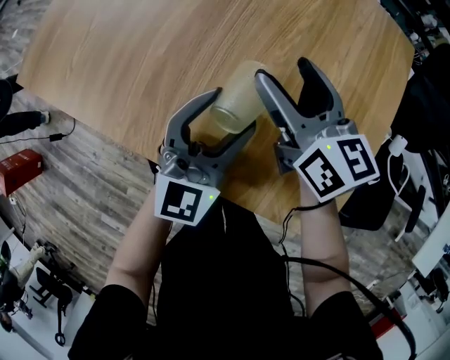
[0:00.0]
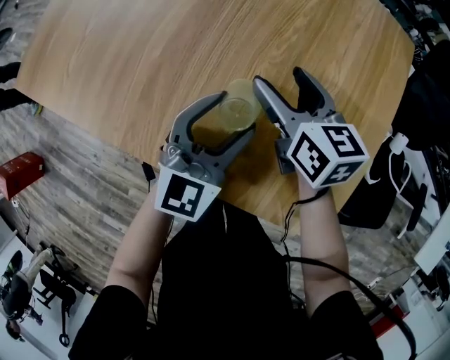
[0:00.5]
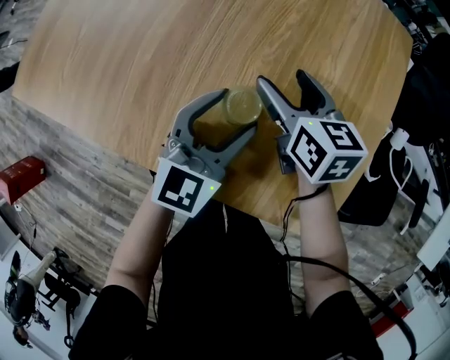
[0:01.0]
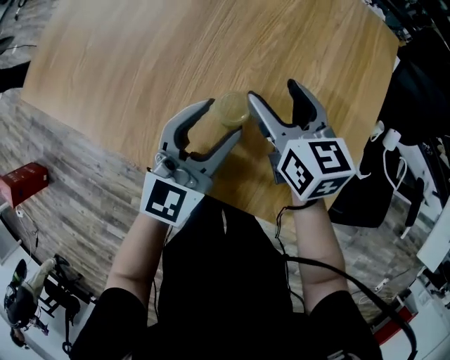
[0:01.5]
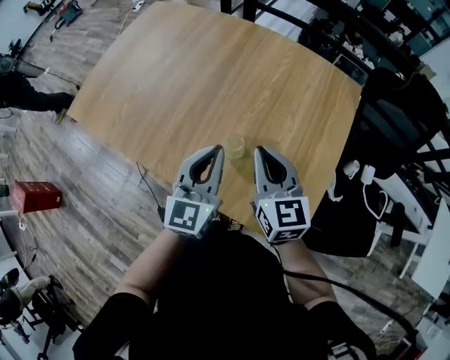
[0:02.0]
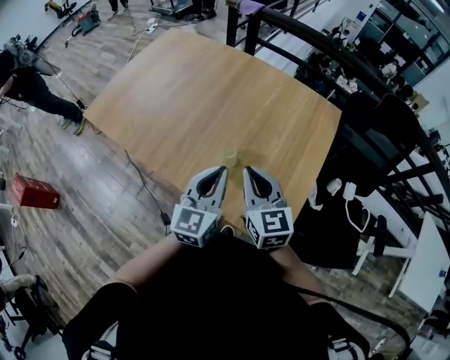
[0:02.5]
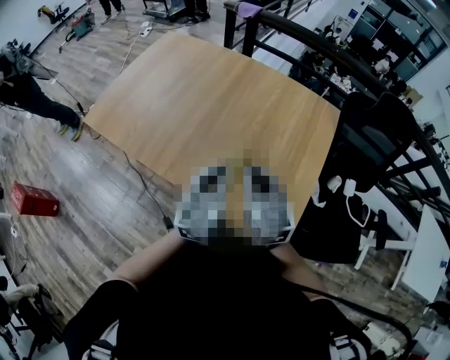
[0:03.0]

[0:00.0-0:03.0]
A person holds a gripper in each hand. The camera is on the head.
0:00.0 to 0:01.5: The right gripper goes downward and returns, roughly 10 cm each way.
0:01.5 to 0:03.0: The grippers both shift upward and backward by roughly 25 cm. The left gripper closes; the right gripper closes up.

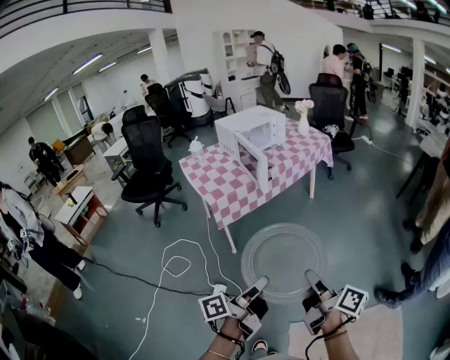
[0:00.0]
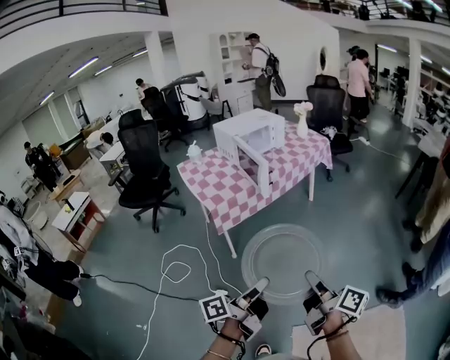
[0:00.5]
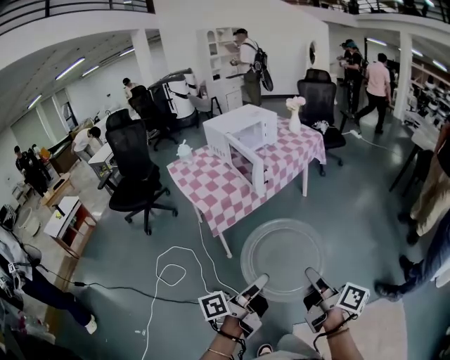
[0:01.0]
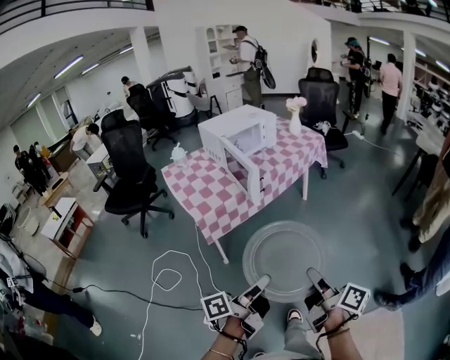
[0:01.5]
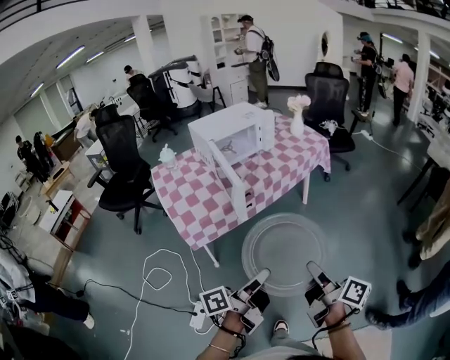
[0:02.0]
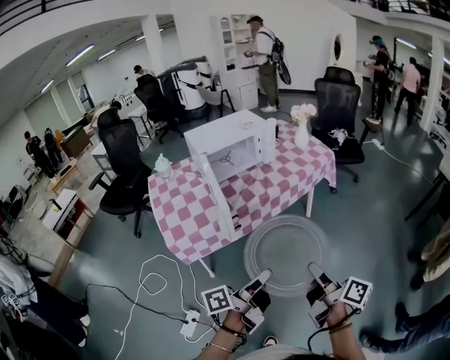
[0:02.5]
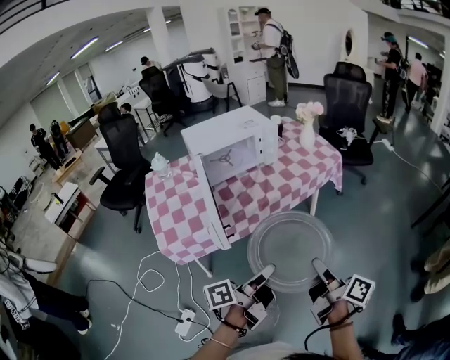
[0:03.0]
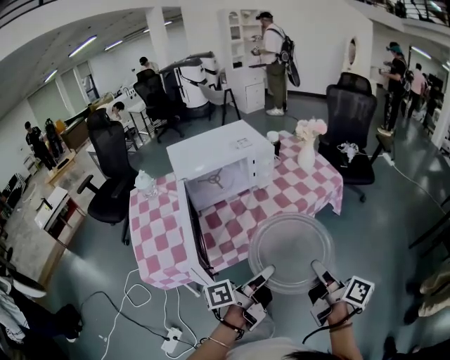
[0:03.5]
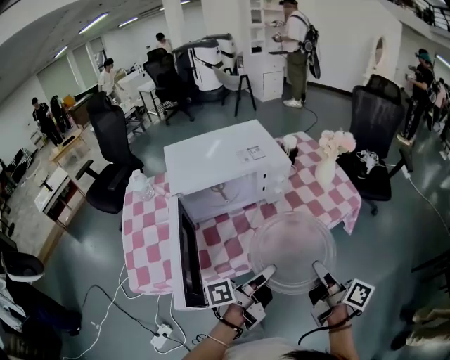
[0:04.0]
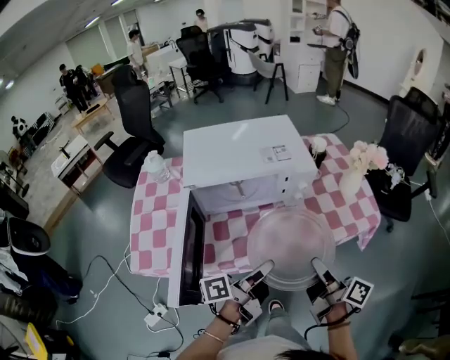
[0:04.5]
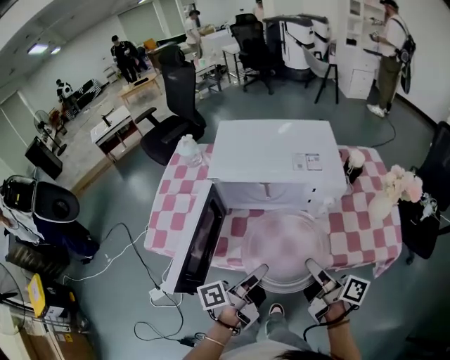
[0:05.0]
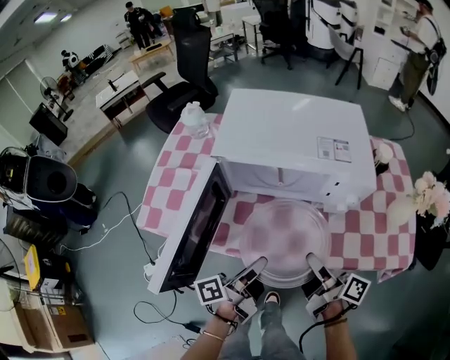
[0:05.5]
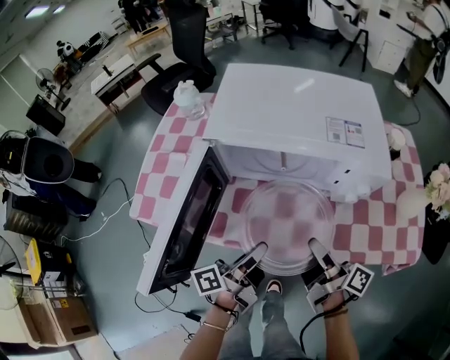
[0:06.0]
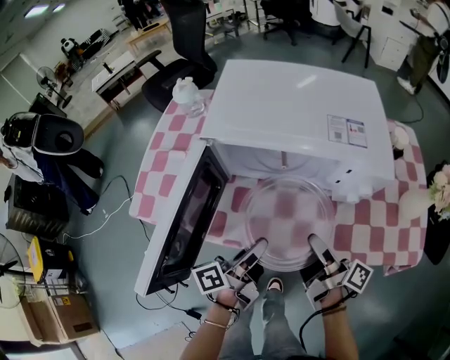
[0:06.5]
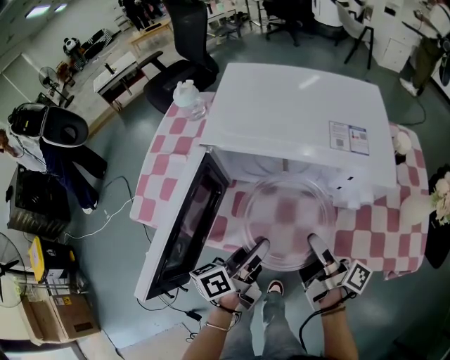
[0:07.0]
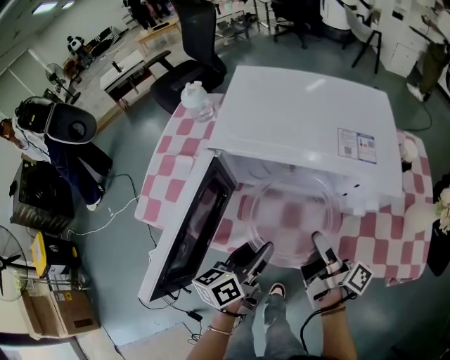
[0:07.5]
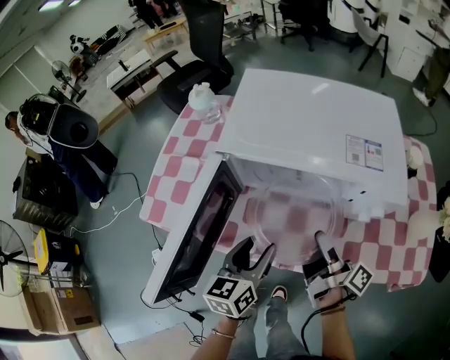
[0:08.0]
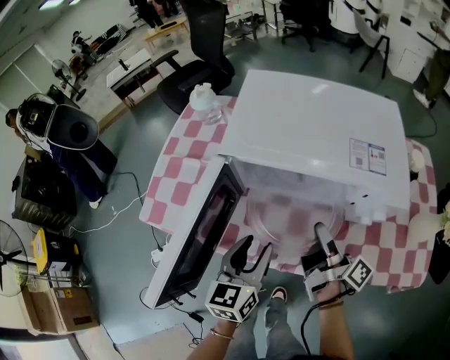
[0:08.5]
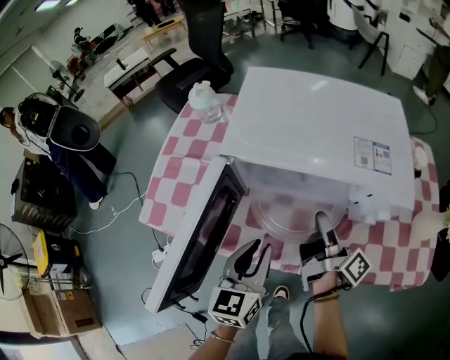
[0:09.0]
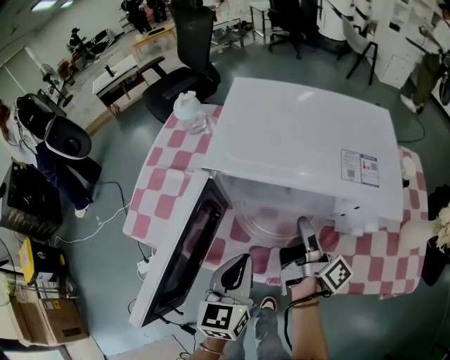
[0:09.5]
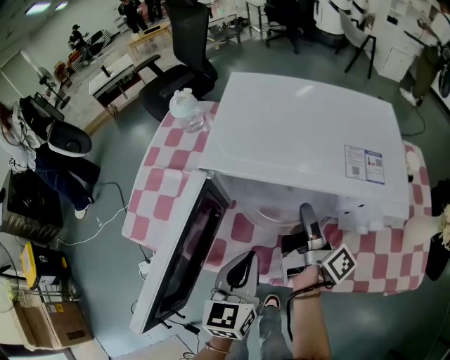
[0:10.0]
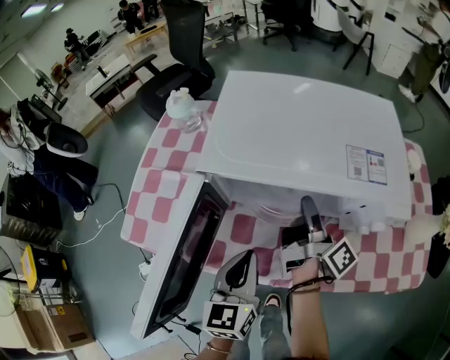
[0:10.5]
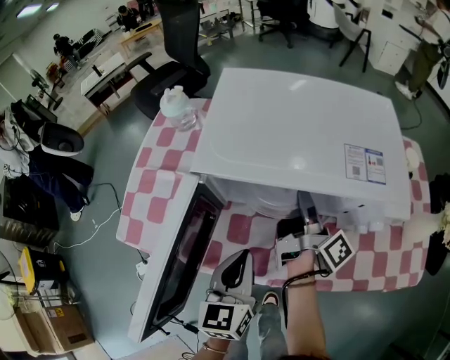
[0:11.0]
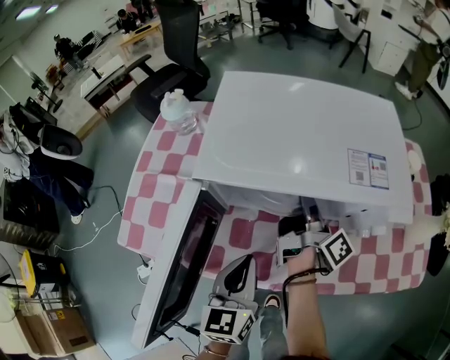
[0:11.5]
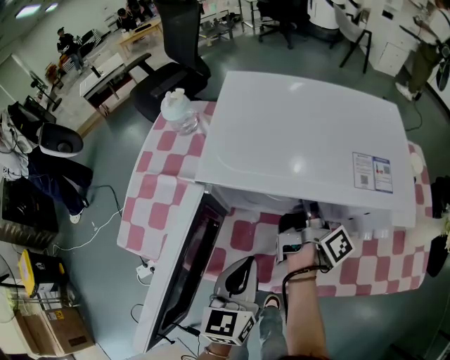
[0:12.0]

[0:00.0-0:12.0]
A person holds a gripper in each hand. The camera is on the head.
0:00.0 to 0:02.0: The left gripper ends up about 30 cm from where it was.
0:02.0 to 0:04.0: The left gripper ends up about 50 cm from where it was.
0:04.0 to 0:06.0: The left gripper ends up roughly 20 cm from where it was, and turns by approximately 40 degrees.
0:06.0 to 0:08.0: The left gripper changes place by about 5 cm, twists some 50 degrees clockwise, seen from behind, and opens up.
0:08.0 to 0:10.0: The left gripper closes.

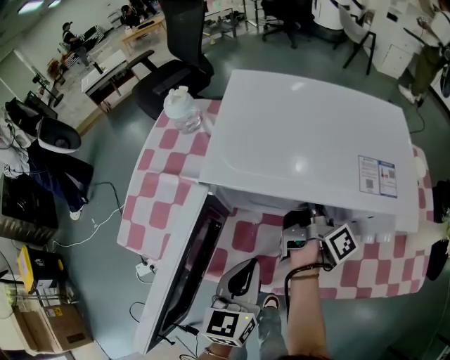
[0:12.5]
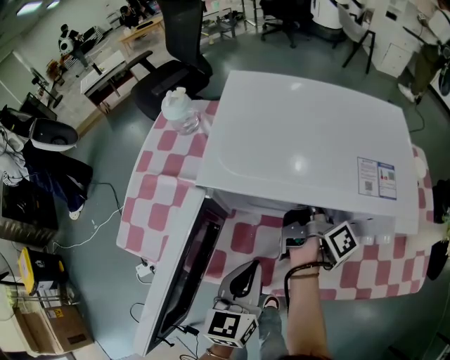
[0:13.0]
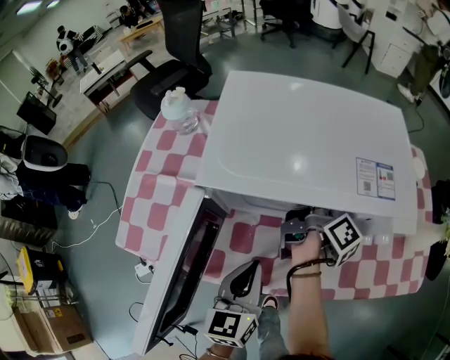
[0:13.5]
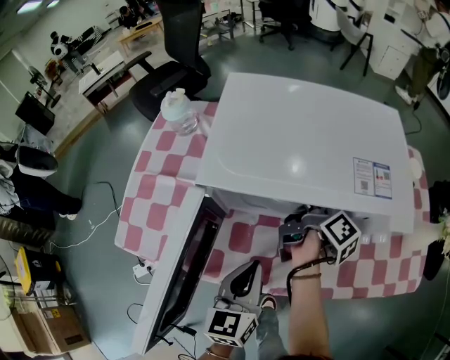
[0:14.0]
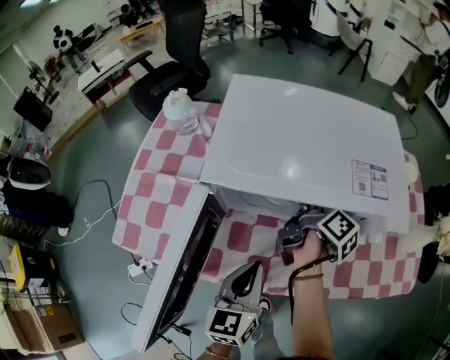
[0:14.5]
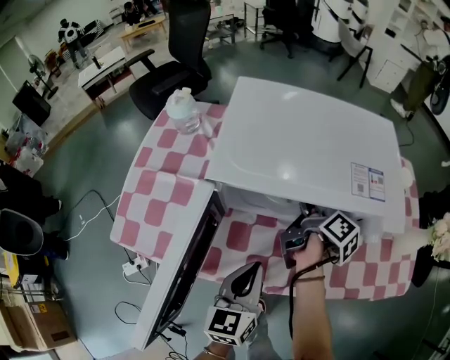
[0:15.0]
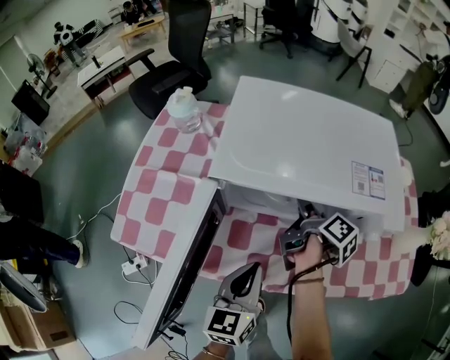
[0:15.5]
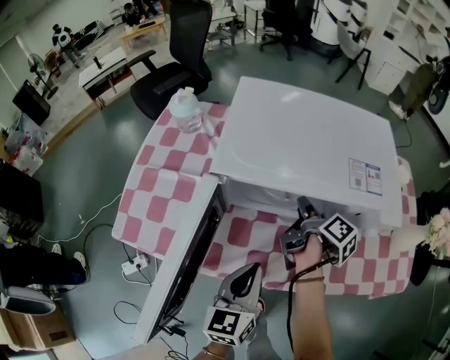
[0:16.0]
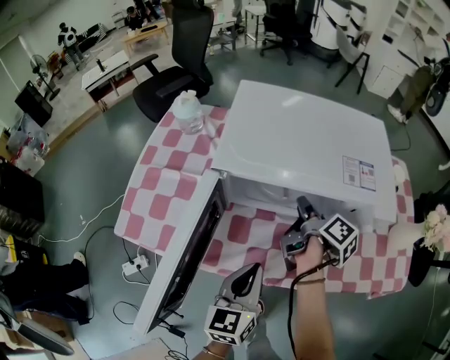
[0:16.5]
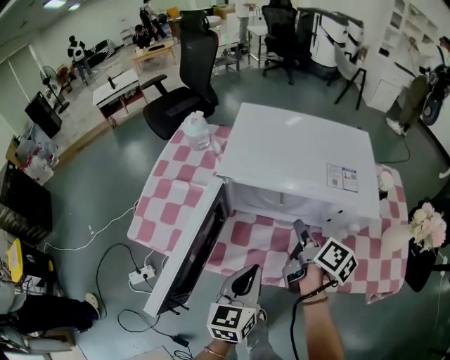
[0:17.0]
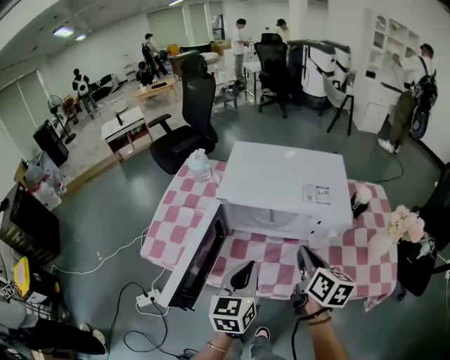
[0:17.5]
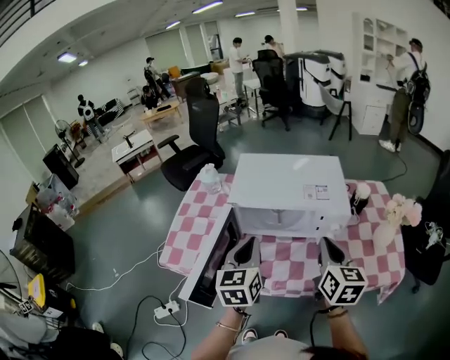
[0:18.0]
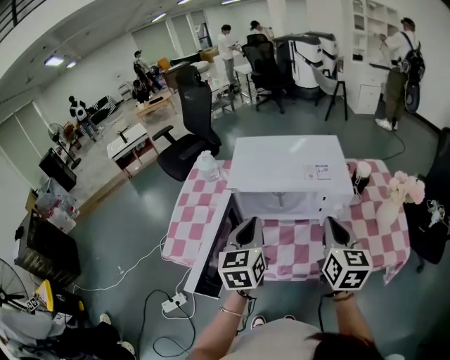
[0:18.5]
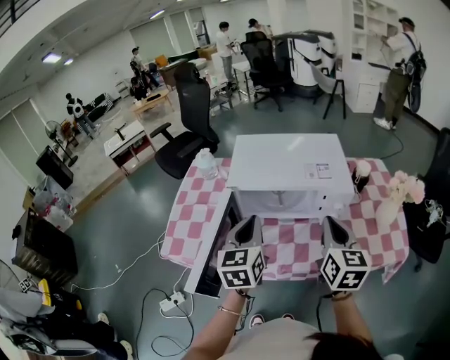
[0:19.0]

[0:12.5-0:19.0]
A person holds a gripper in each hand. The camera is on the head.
0:14.5 to 0:17.0: The left gripper ends up roughly 5 cm from where it was.
0:17.0 to 0:19.0: The left gripper heads upward, covering roughly 15 cm.

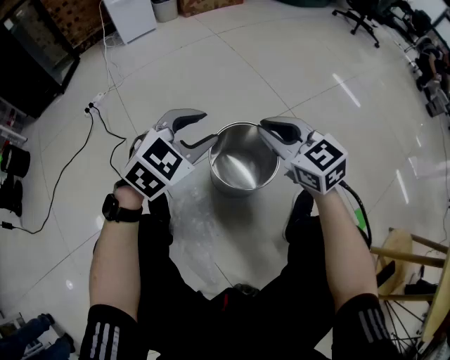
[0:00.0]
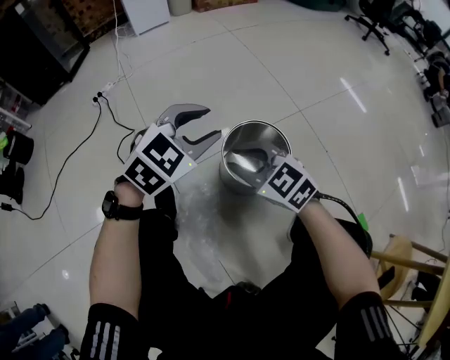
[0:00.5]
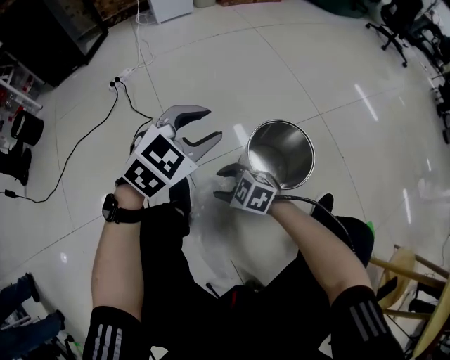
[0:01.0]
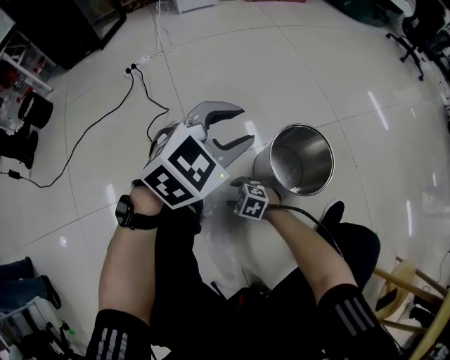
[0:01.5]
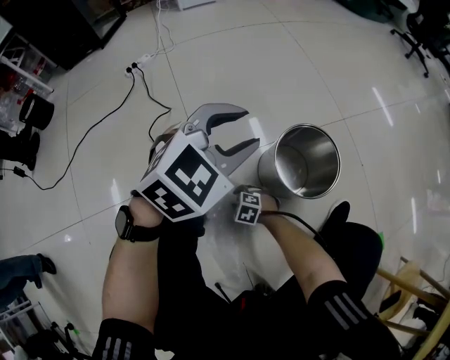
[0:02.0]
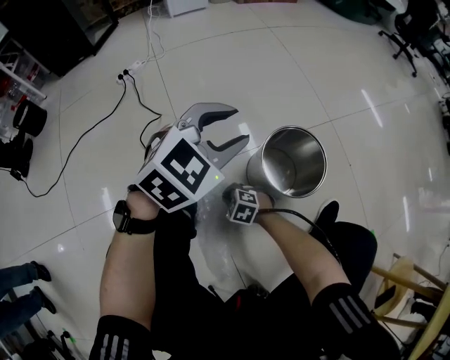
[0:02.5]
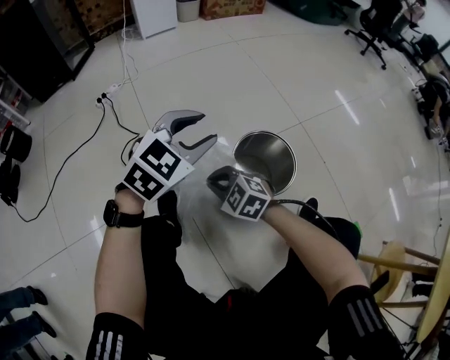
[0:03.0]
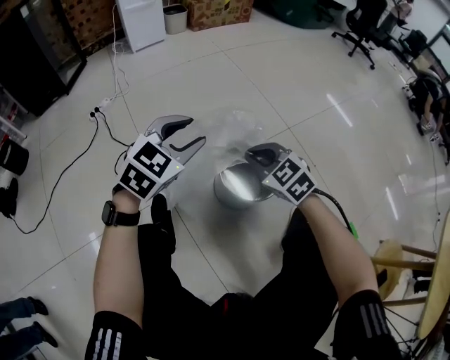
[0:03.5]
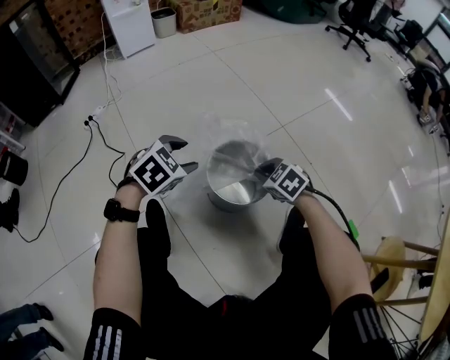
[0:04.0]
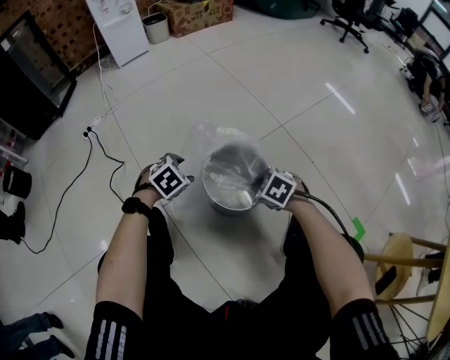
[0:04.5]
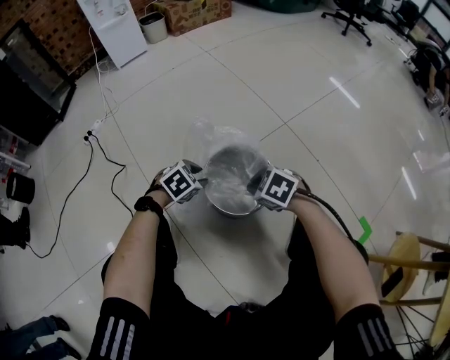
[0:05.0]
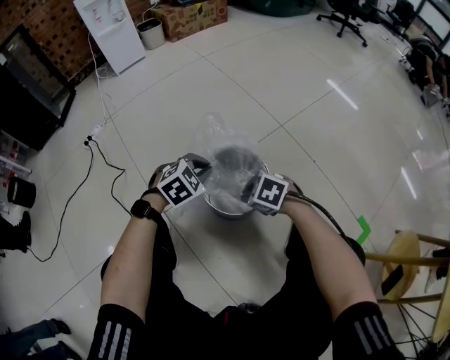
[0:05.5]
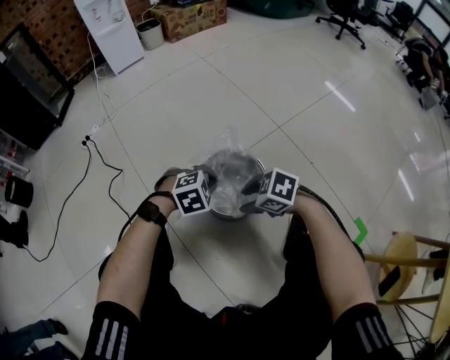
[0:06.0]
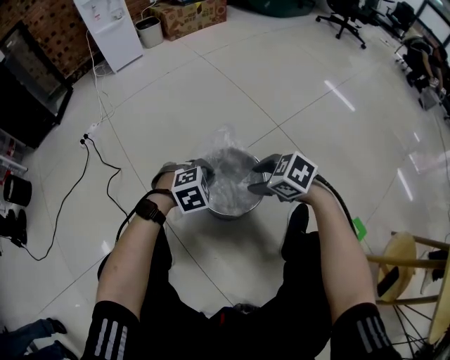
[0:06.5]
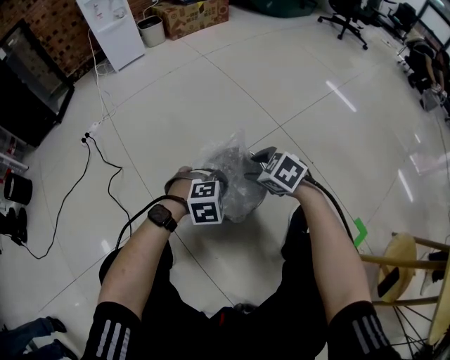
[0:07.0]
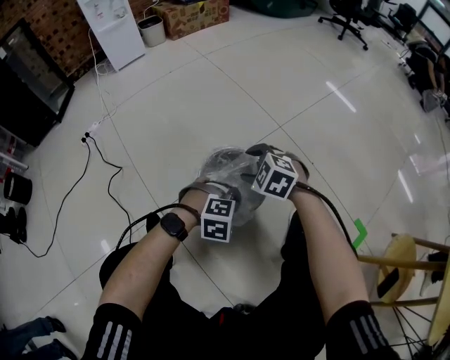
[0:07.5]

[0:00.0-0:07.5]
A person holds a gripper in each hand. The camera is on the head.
0:00.0 to 0:02.0: The left gripper shifts by some 10 cm. The right gripper travels downward by roughly 40 cm, and tilts its fingers about 50 degrees downward.
0:02.0 to 0:04.0: The right gripper shifts by approximately 40 cm, changes its angle by some 40 degrees, and closes. Meanwhile the left gripper is displaced downward by approximately 10 cm, and swivels approximately 20 degrees.
0:04.0 to 0:05.5: The left gripper ends up roughly 10 cm from where it was, and closes.
0:05.5 to 0:07.5: The right gripper moves about 10 cm, swivels approximately 20 degrees, and opens up; the left gripper shifts by about 15 cm, and changes its angle by roughly 40 degrees.
